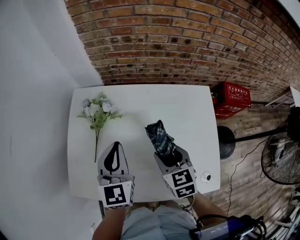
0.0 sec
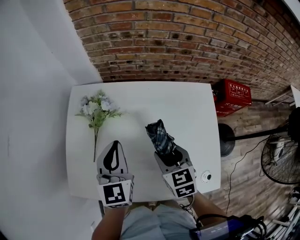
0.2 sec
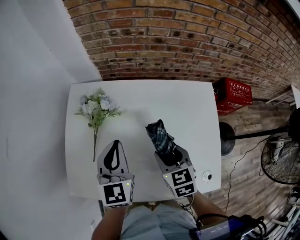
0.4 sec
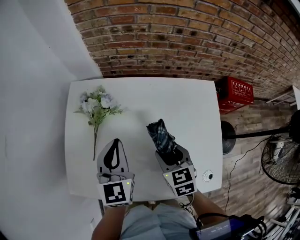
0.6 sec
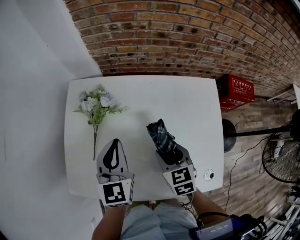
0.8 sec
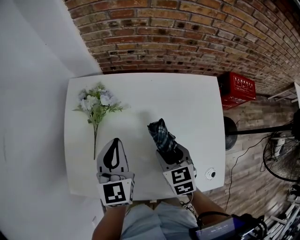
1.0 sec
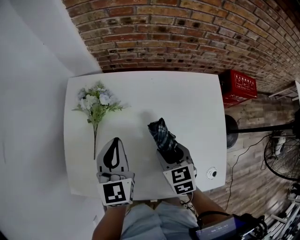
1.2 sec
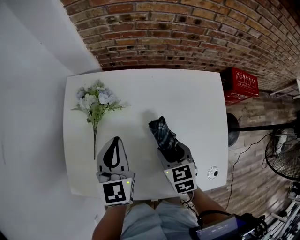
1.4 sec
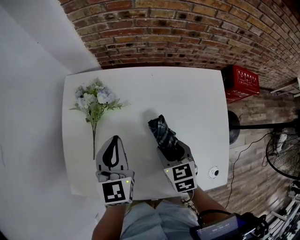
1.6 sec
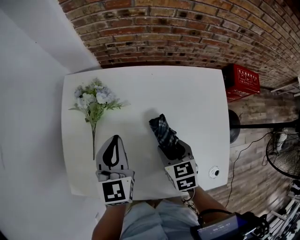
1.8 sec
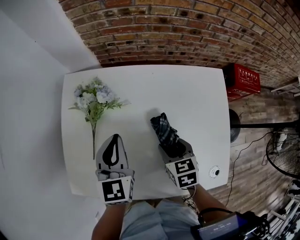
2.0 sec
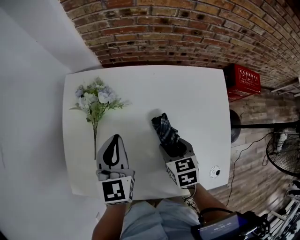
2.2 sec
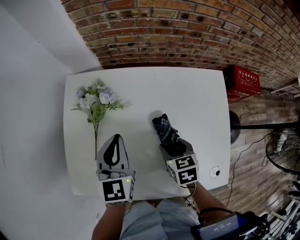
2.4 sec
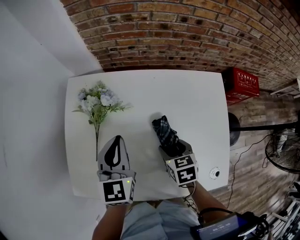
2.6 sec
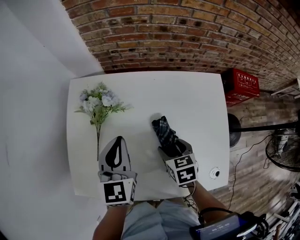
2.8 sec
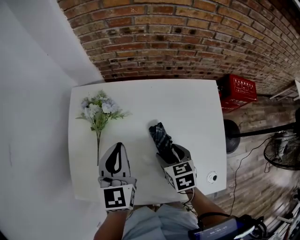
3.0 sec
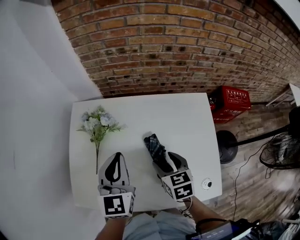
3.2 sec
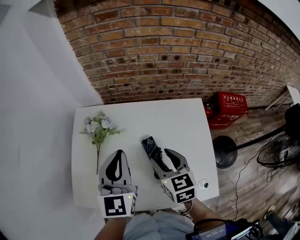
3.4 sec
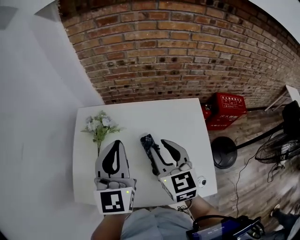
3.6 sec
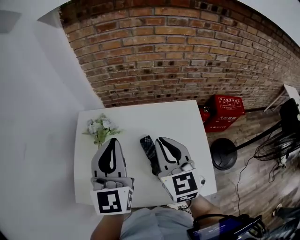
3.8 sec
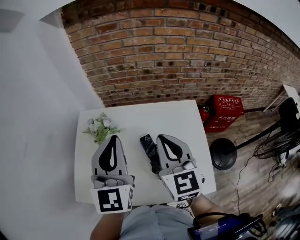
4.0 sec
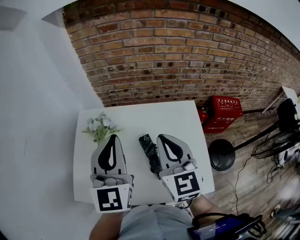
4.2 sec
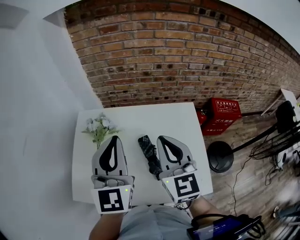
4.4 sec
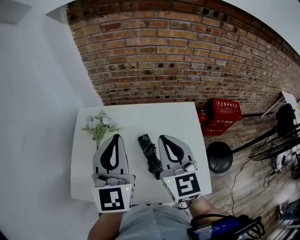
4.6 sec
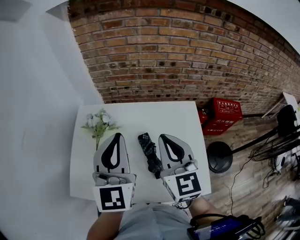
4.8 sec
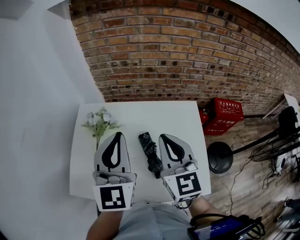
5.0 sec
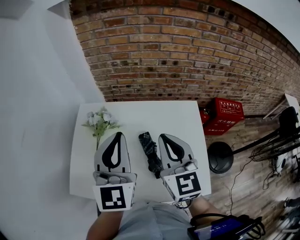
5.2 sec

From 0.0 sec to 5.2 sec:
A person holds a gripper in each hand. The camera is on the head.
From 0.0 sec to 1.8 sec: The grippers both shift downward by some 10 cm.
From 1.8 sec to 3.4 sec: The two grippers go approximately 15 cm upward.
From 3.4 sec to 5.2 sec: The left gripper shifts roughly 10 cm upward, while the right gripper moves upward, some 15 cm, changes its angle by roughly 30 degrees, and closes up.

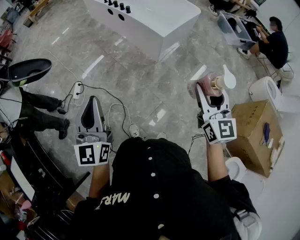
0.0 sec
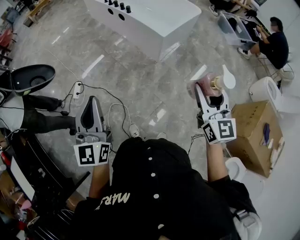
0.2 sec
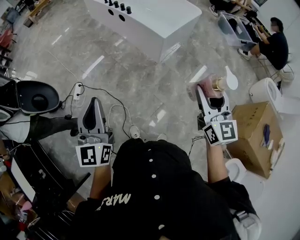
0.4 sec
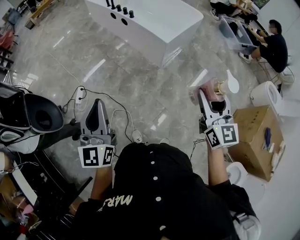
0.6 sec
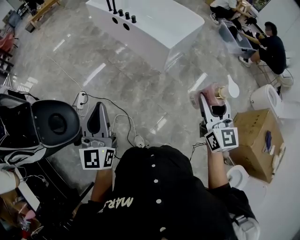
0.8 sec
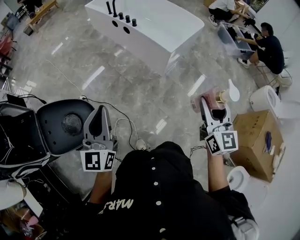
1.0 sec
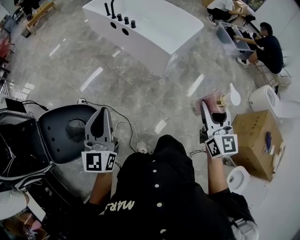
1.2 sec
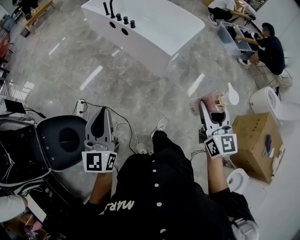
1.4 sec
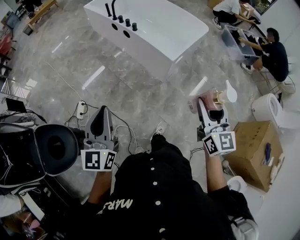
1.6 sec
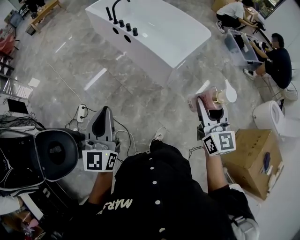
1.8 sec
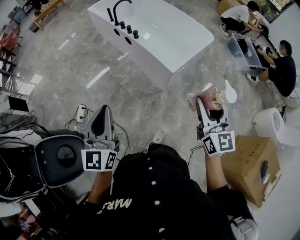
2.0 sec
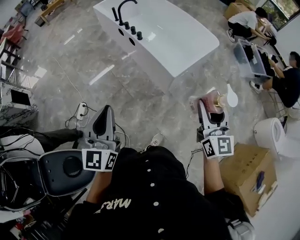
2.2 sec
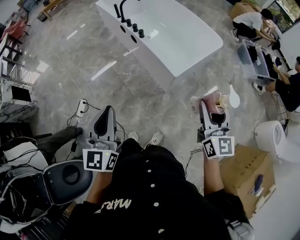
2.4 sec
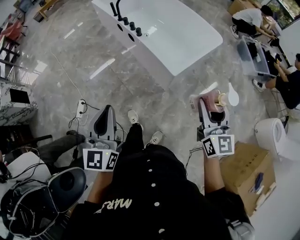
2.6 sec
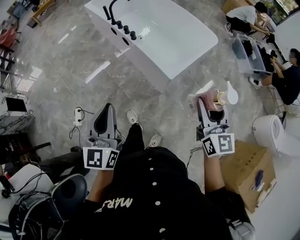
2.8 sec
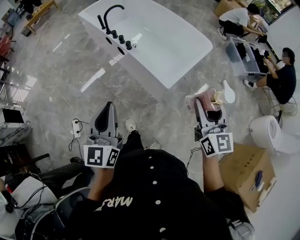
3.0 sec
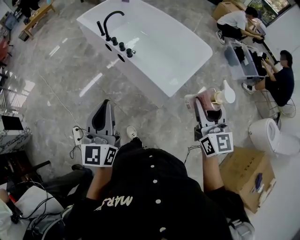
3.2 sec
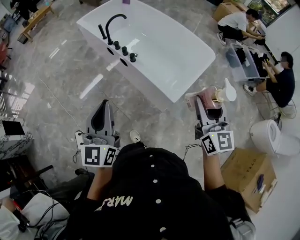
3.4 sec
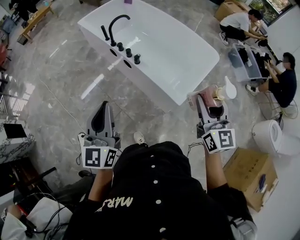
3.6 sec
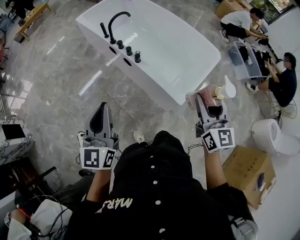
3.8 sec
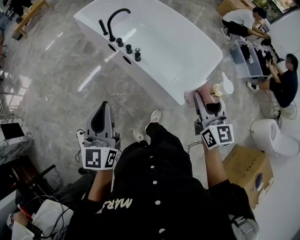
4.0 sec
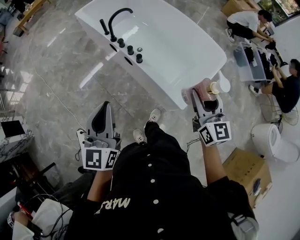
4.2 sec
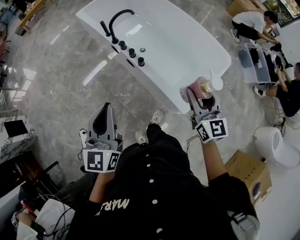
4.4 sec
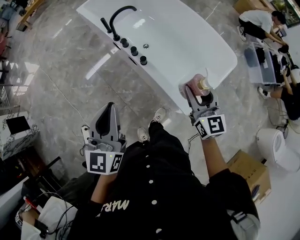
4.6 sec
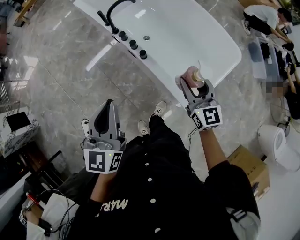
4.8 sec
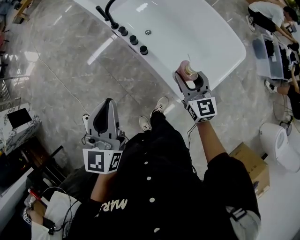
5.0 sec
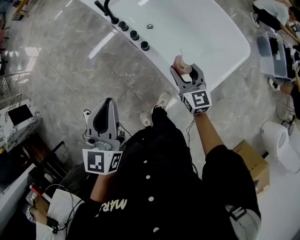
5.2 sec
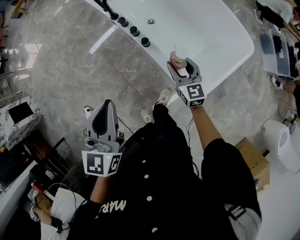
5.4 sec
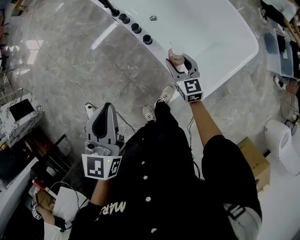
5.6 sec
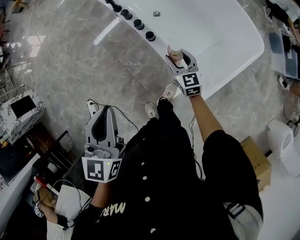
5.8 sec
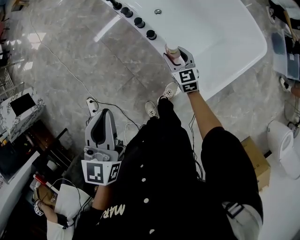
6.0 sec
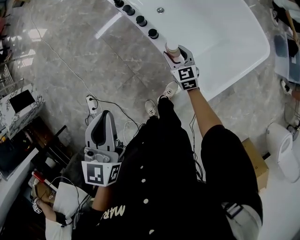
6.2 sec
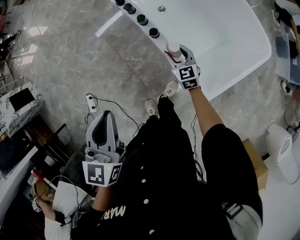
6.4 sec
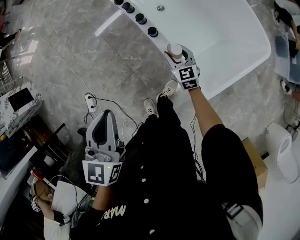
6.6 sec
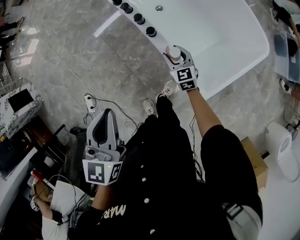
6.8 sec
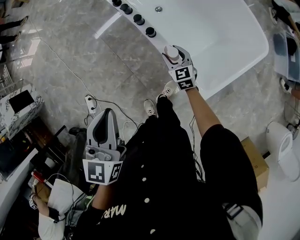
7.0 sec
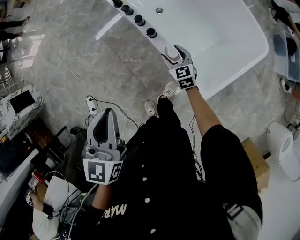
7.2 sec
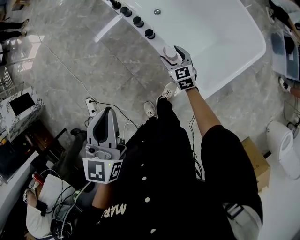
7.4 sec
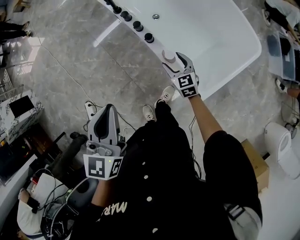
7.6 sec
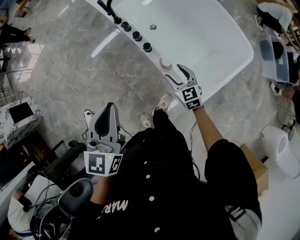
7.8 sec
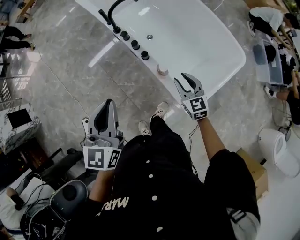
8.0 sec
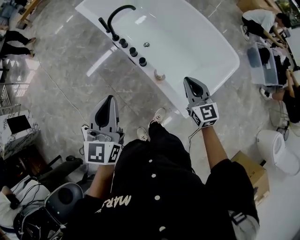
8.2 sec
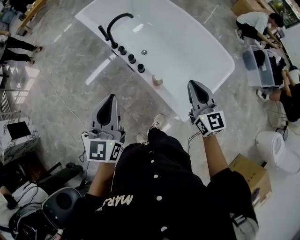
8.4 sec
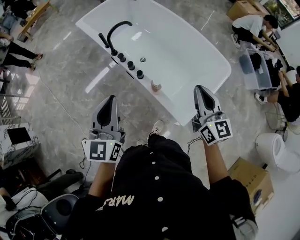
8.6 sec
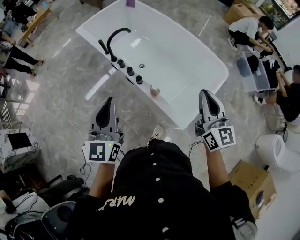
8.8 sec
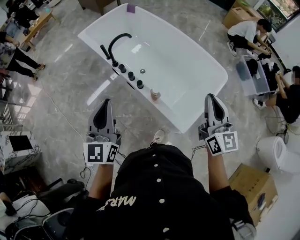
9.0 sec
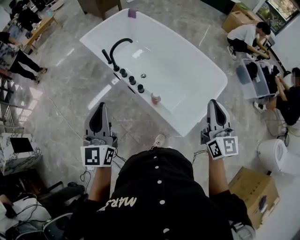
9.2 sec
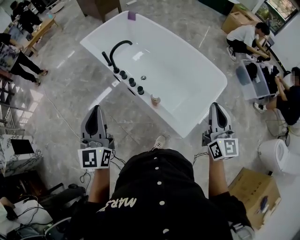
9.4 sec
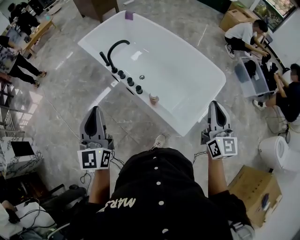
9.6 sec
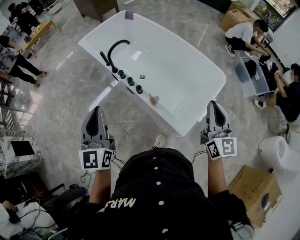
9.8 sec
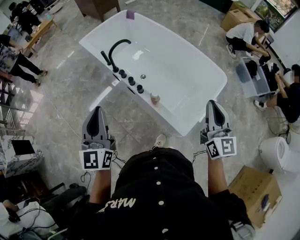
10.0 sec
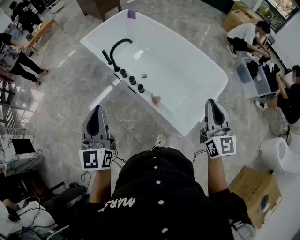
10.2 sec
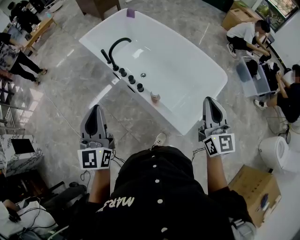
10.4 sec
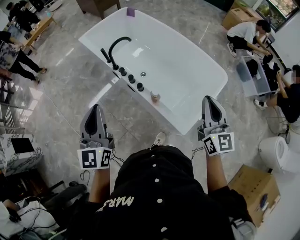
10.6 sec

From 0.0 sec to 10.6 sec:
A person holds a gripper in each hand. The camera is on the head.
From 0.0 sec to 1.6 sec: The two grippers go some 15 cm forward.
From 1.6 sec to 3.0 sec: Both grippers move forward, roughly 25 cm.
From 3.0 sec to 4.6 sec: The grippers both shift forward by roughly 30 cm.
From 4.6 sec to 6.0 sec: The left gripper shifts some 10 cm downward. Meanwhile the right gripper moves downward and forward, approximately 35 cm, and rotates approximately 20 degrees.
From 6.0 sec to 7.6 sec: The grippers stay close to where they were, moving slightly.
From 7.6 sec to 9.0 sec: The right gripper shifts about 40 cm upward, angles its fingers upward, by some 30 degrees, and closes up; the left gripper shifts about 10 cm upward, and changes its angle by approximately 20 degrees.
From 9.0 sec to 10.6 sec: The grippers move only a little.

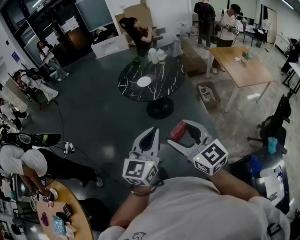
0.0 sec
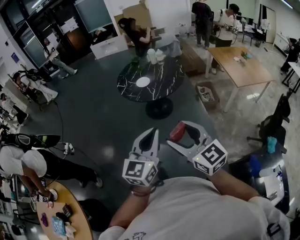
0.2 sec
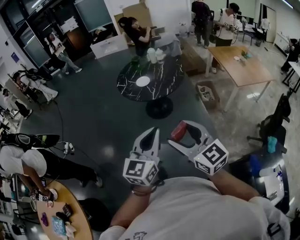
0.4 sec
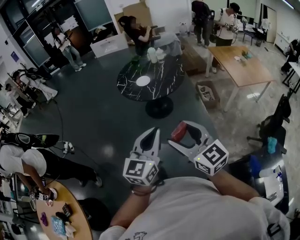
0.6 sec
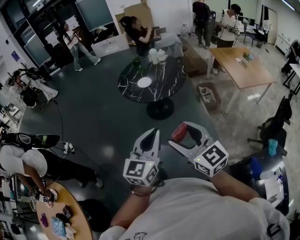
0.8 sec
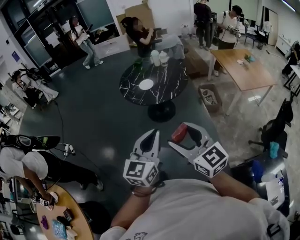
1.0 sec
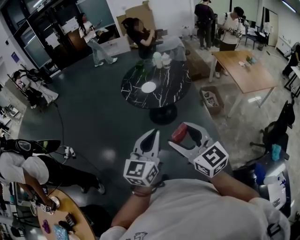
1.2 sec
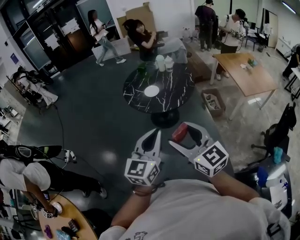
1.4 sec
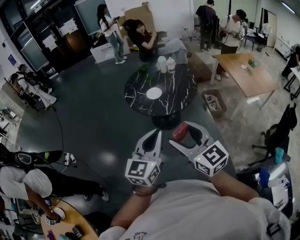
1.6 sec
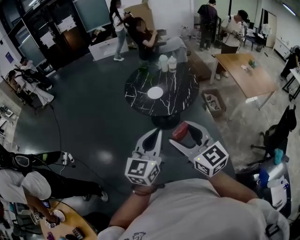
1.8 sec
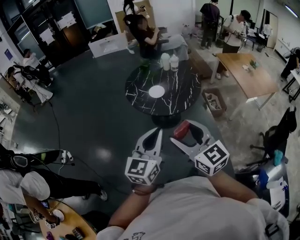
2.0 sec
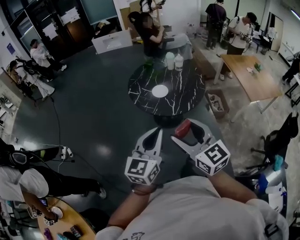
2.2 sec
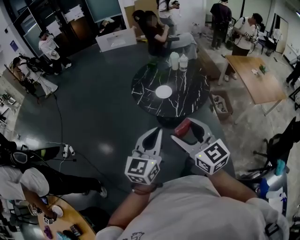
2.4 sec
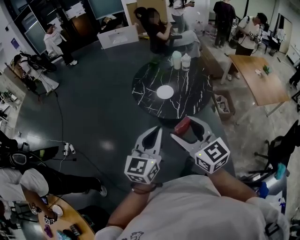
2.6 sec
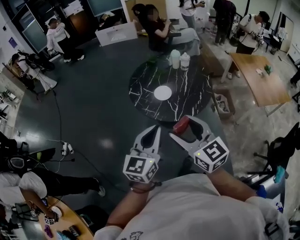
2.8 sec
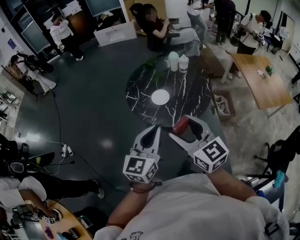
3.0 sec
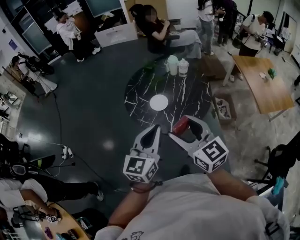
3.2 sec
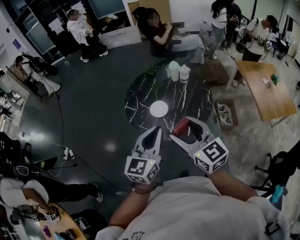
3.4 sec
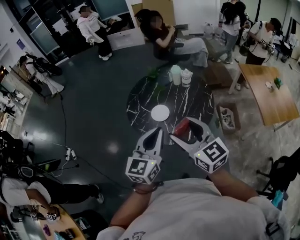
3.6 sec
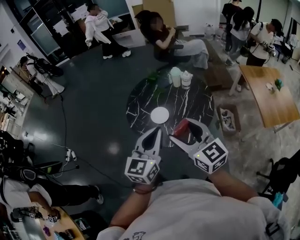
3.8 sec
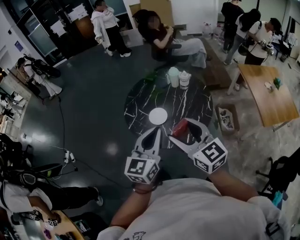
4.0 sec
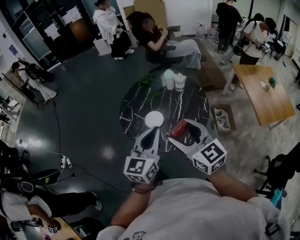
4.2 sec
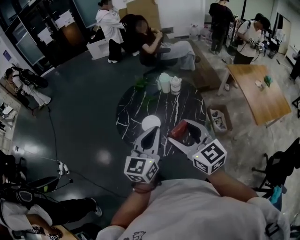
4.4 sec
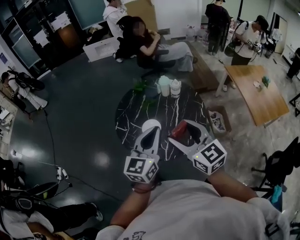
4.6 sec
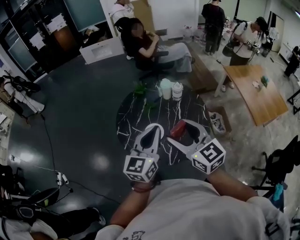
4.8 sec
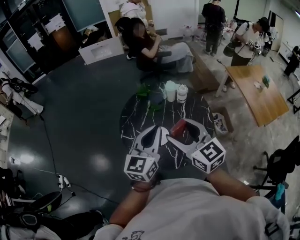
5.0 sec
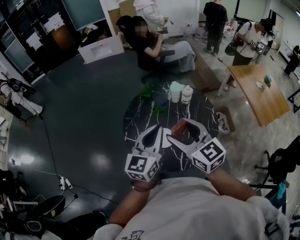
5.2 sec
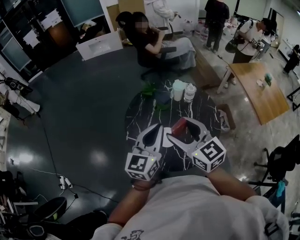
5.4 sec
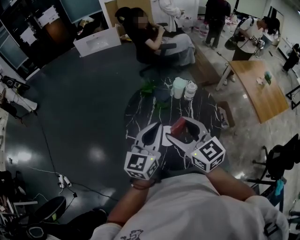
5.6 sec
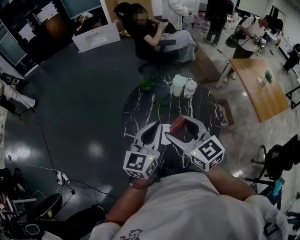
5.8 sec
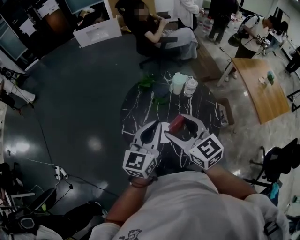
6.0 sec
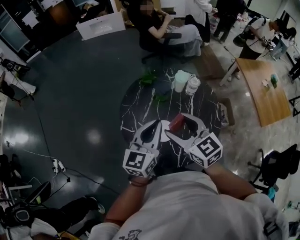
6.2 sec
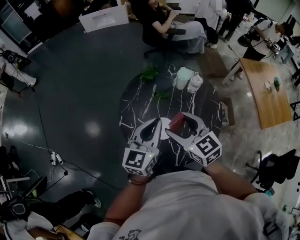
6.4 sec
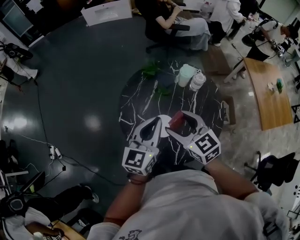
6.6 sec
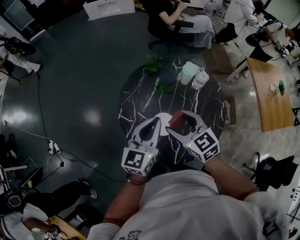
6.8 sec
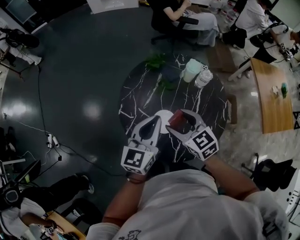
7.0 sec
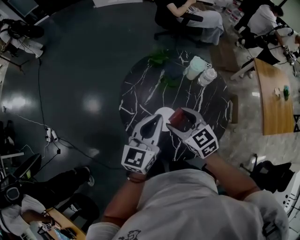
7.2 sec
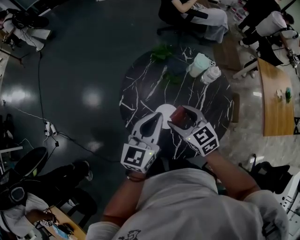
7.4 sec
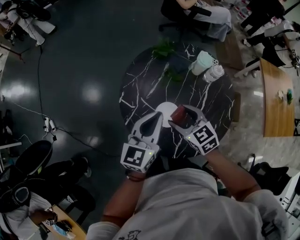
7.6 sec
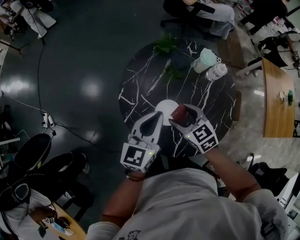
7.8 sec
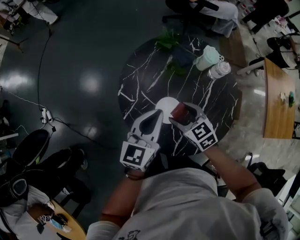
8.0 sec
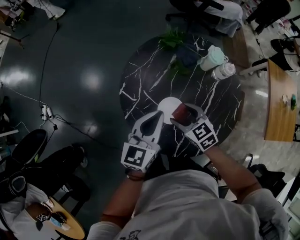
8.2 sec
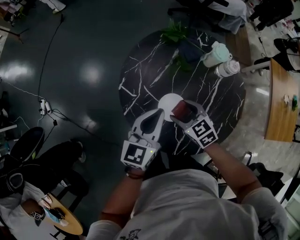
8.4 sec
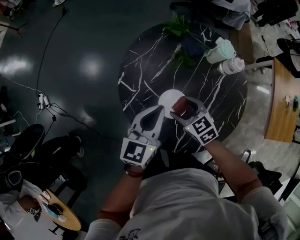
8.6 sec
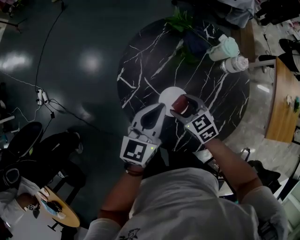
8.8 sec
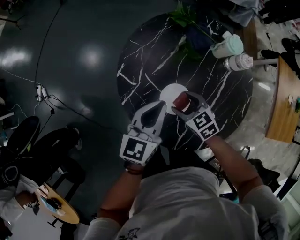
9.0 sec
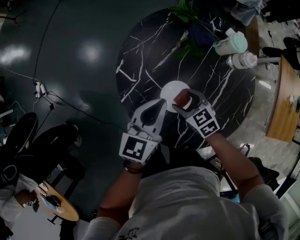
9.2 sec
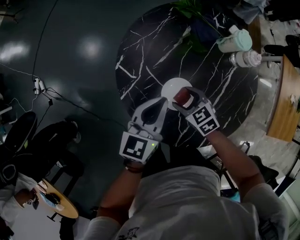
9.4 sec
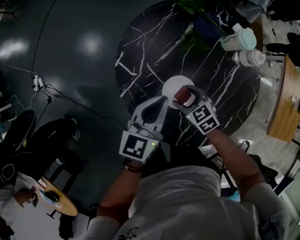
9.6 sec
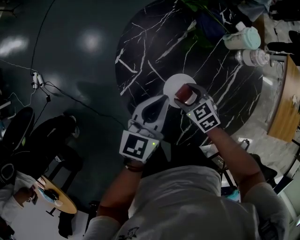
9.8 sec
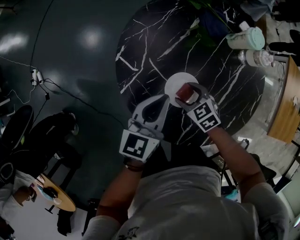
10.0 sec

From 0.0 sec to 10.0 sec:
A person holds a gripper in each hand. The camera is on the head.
From 0.0 sec to 1.4 sec: Both grippers travel together forward and to the left, some 15 cm.
From 1.4 sec to 2.8 sec: Both grippers travel together forward, about 25 cm.
From 2.8 sec to 4.2 sec: The two grippers go roughly 25 cm forward and to the right.
From 4.2 sec to 5.8 sec: The grippers both shift forward and to the left by approximately 30 cm.
From 5.8 sec to 7.2 sec: The right gripper is displaced downward by about 20 cm, and swivels some 20 degrees, while the left gripper heads downward, covering approximately 10 cm.
From 7.2 sec to 8.6 sec: The grippers both shift downward by approximately 15 cm.
From 8.6 sec to 10.0 sec: Both grippers move downward, about 10 cm.
